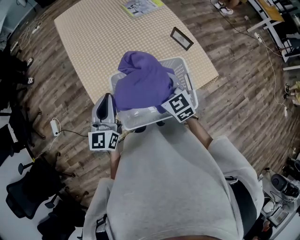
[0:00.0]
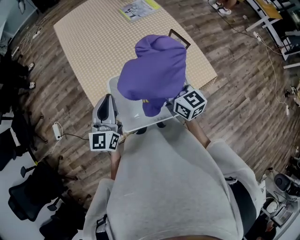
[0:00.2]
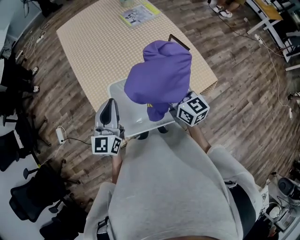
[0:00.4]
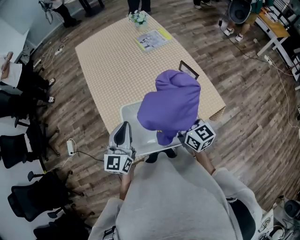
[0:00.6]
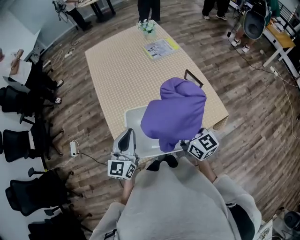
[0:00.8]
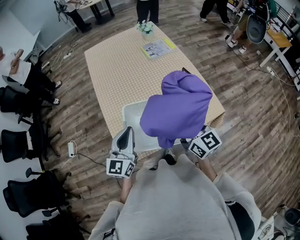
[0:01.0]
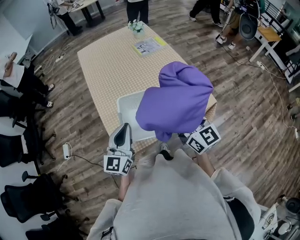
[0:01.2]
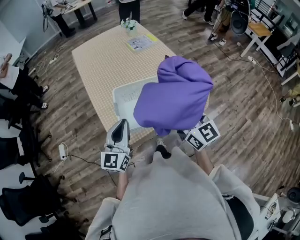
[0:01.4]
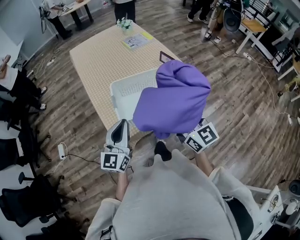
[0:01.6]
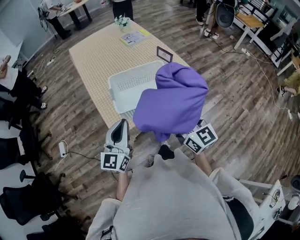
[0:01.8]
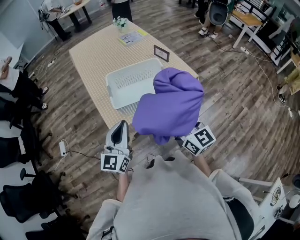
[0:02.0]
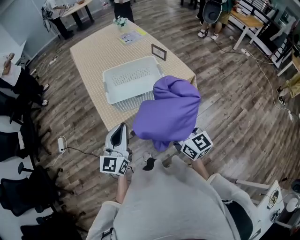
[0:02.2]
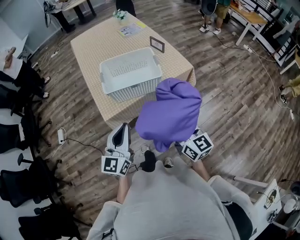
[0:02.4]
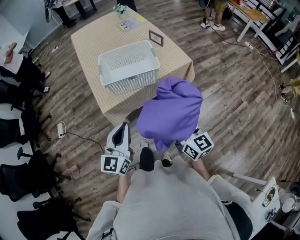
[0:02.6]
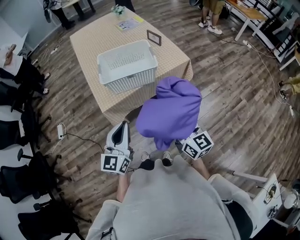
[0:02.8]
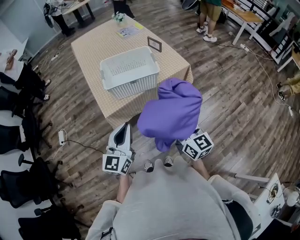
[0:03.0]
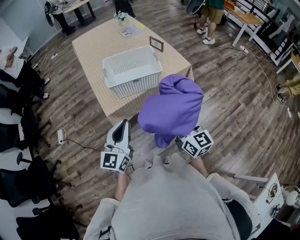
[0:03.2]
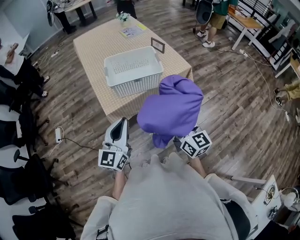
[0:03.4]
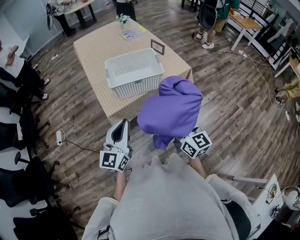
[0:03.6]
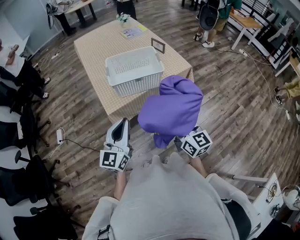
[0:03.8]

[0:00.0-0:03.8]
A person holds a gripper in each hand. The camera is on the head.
0:00.0 to 0:01.2: The left gripper is displaced backward by approximately 10 cm; the right gripper shifts approximately 20 cm upward, backward and to the right, and angles its fingers upward, by roughly 30 degrees.
0:01.2 to 0:02.6: The two grippers go some 35 cm backward.
0:02.6 to 0:03.8: The left gripper moves some 5 cm.

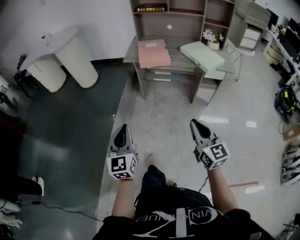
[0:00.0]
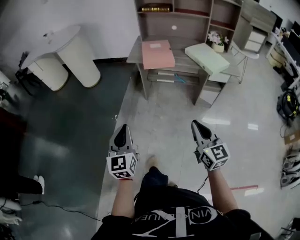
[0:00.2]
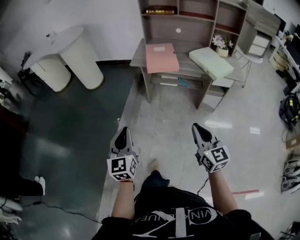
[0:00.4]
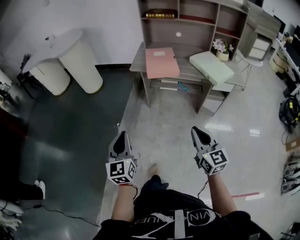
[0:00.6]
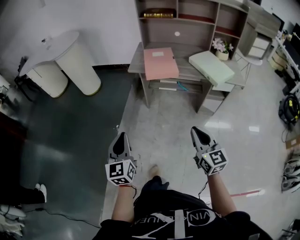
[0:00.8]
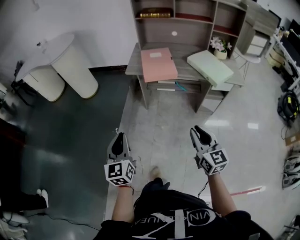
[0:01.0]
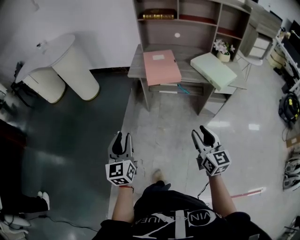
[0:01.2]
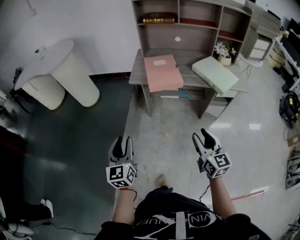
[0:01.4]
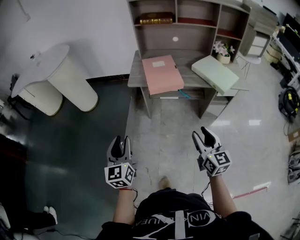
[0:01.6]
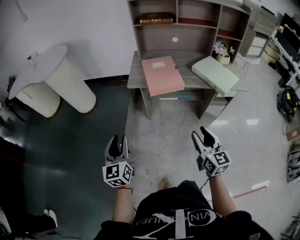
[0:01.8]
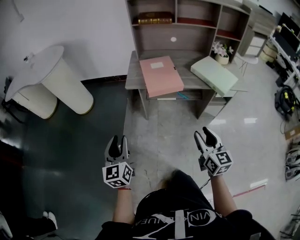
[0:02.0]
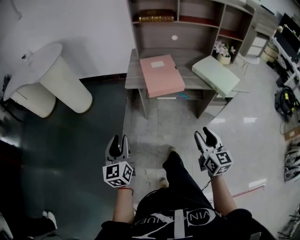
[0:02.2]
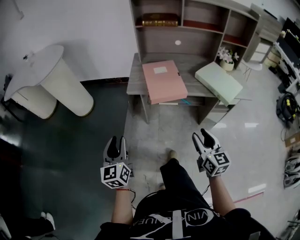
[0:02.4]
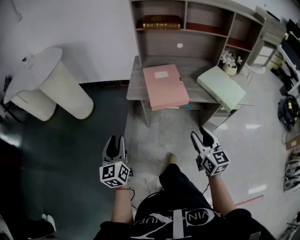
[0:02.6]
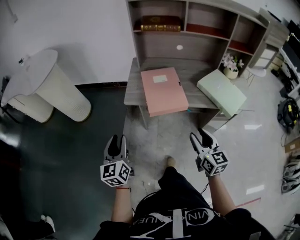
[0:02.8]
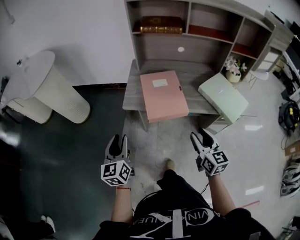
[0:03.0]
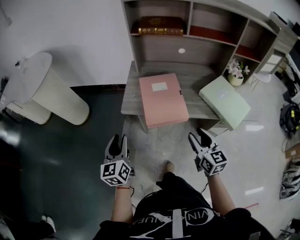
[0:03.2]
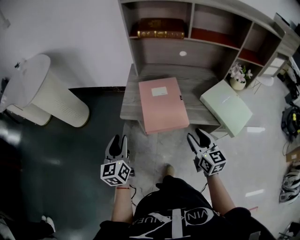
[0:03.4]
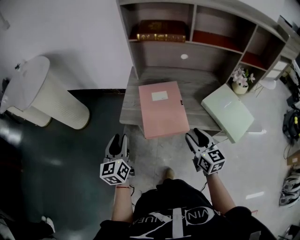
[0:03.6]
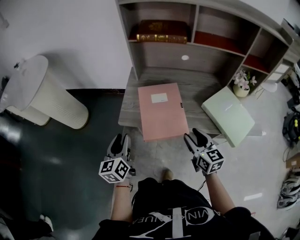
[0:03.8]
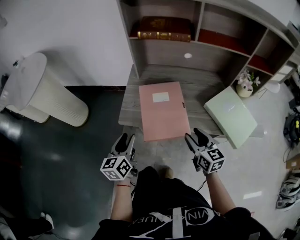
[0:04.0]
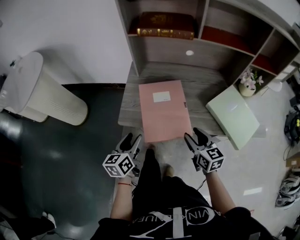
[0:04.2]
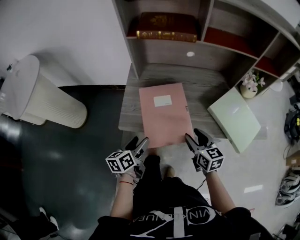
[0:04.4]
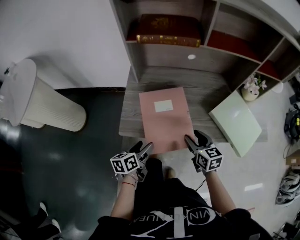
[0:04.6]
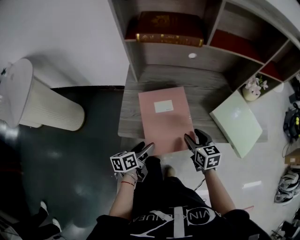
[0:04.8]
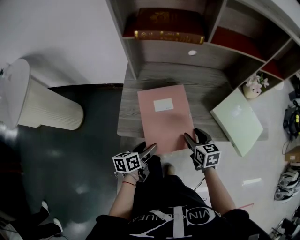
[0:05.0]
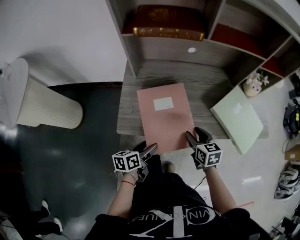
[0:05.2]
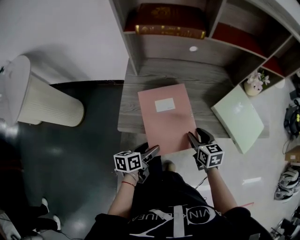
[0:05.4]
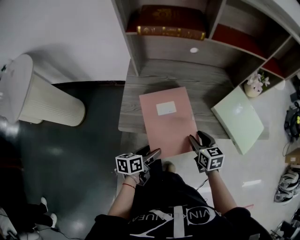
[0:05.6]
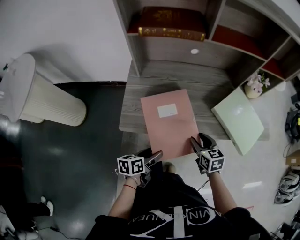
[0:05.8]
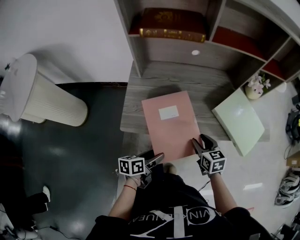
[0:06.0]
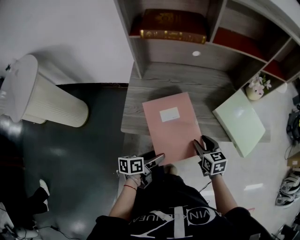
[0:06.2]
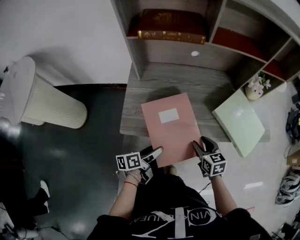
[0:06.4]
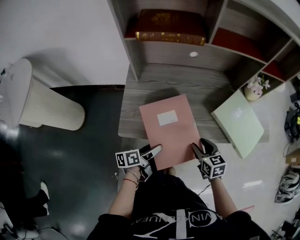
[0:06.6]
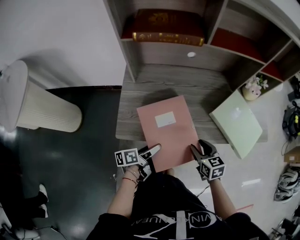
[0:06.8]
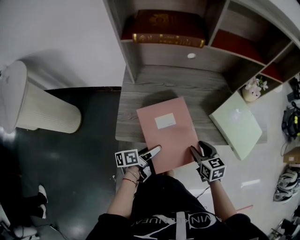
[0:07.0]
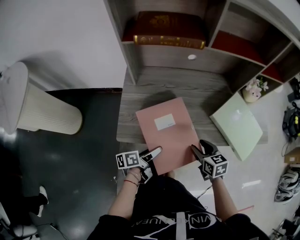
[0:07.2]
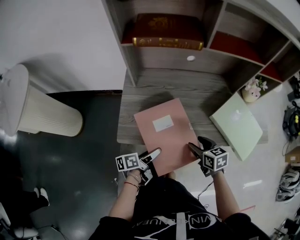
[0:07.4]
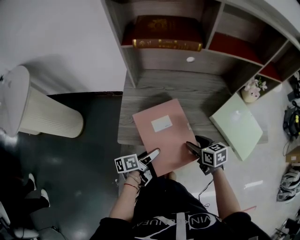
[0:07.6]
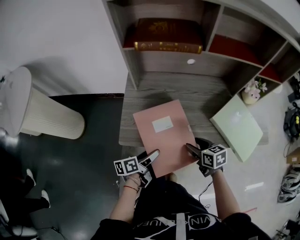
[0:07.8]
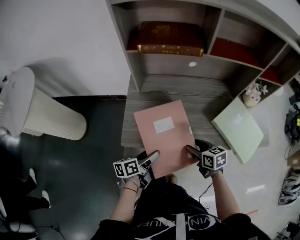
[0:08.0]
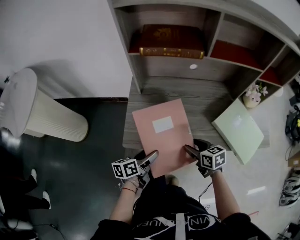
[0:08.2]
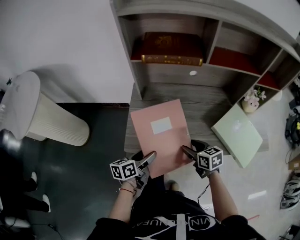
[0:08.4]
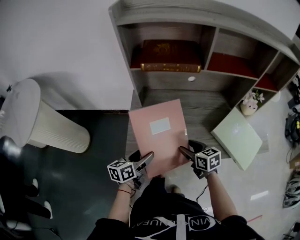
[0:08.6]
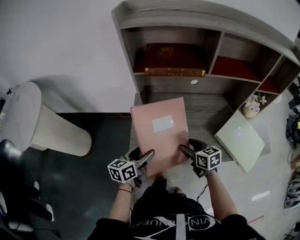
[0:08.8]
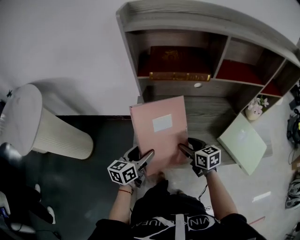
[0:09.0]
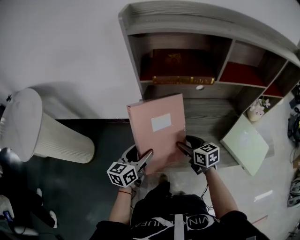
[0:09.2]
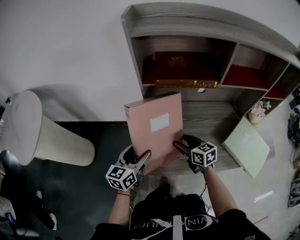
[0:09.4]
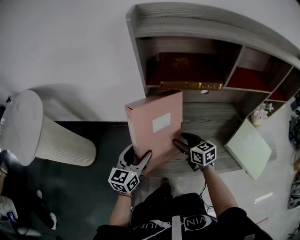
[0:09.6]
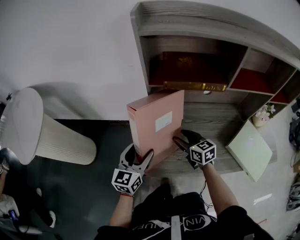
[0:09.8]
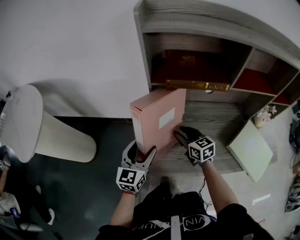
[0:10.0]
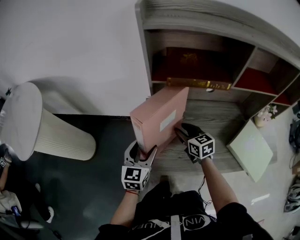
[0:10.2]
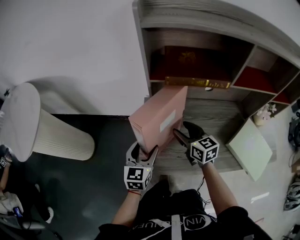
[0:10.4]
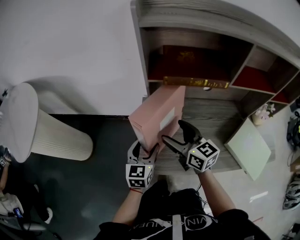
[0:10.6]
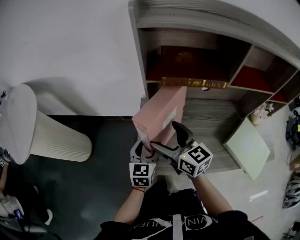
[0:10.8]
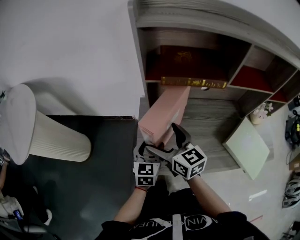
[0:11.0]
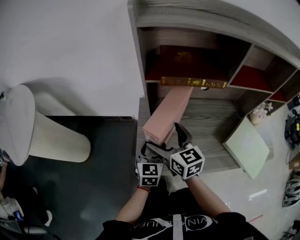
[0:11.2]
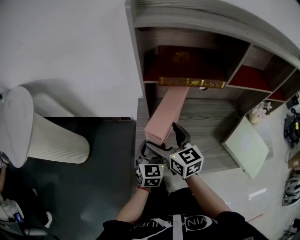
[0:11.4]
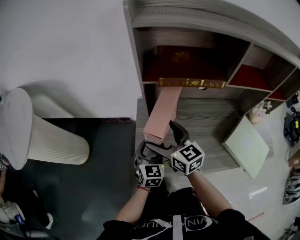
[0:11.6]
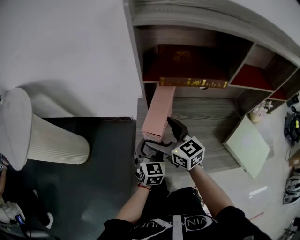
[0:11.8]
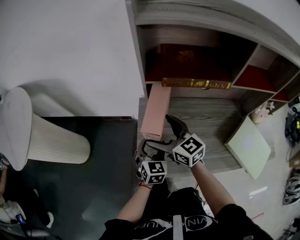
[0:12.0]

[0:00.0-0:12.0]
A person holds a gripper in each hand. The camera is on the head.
0:00.0 to 0:01.6: The grippers both shift forward by about 25 cm. The left gripper opens its fingers.
0:01.6 to 0:03.0: Both grippers move forward, some 25 cm.
0:03.0 to 0:04.4: The left gripper is displaced forward, downward and to the right by some 25 cm, swivels about 40 degrees, and opens. Meanwhile the right gripper moves forward and downward, about 20 cm.
0:04.4 to 0:06.0: The right gripper is displaced downward by approximately 5 cm. Meanwhile the left gripper moves to the right and downward, about 10 cm, and turns by approximately 20 degrees.
0:06.0 to 0:07.6: The left gripper goes roughly 5 cm forward.
0:07.6 to 0:09.0: The right gripper shifts roughly 15 cm forward, to the left and upward; the left gripper travels upward, forward and to the left by about 20 cm, and twists some 40 degrees clockwise, seen from behind.
0:09.0 to 0:10.4: The right gripper shifts roughly 15 cm forward, to the left and upward. The left gripper is displaced forward by roughly 5 cm, and turns by approximately 30 degrees.
0:10.4 to 0:12.0: The right gripper travels to the left and upward by approximately 10 cm, and opens up. The left gripper shifts by roughly 5 cm.

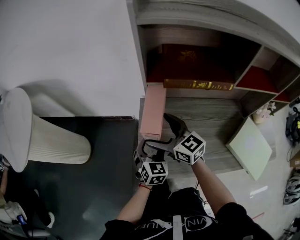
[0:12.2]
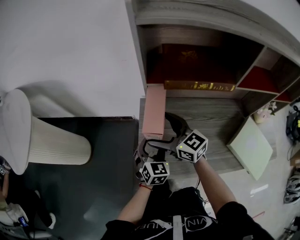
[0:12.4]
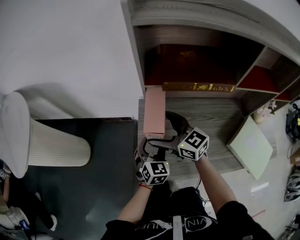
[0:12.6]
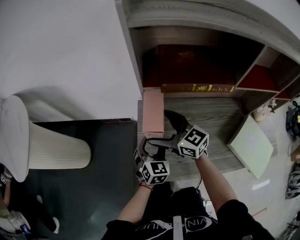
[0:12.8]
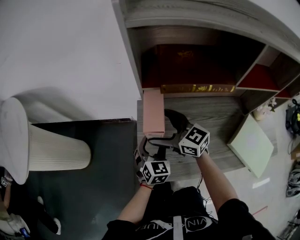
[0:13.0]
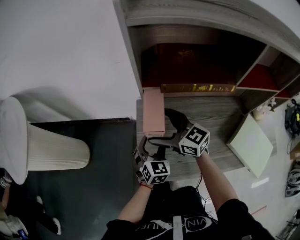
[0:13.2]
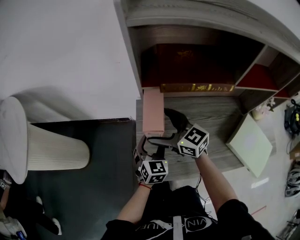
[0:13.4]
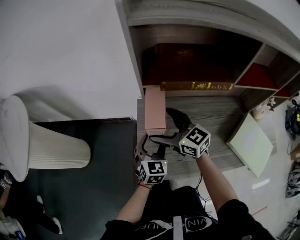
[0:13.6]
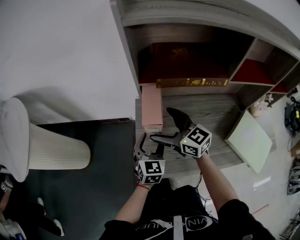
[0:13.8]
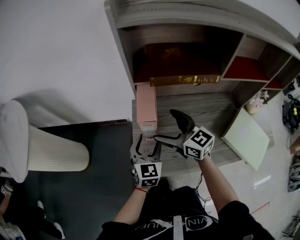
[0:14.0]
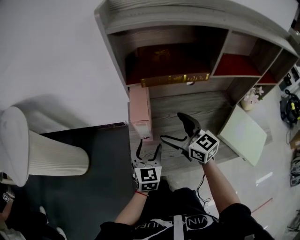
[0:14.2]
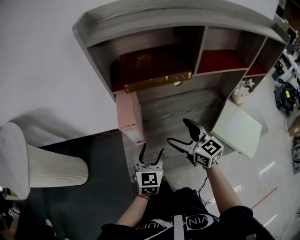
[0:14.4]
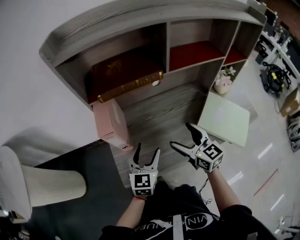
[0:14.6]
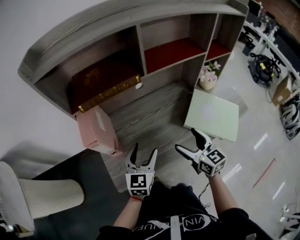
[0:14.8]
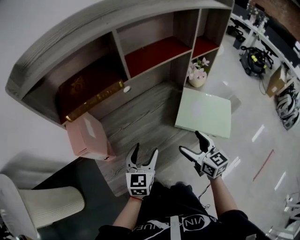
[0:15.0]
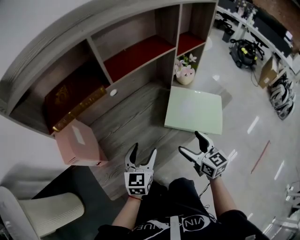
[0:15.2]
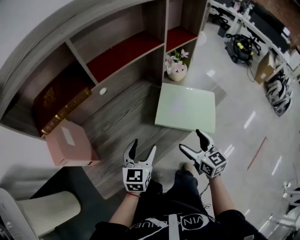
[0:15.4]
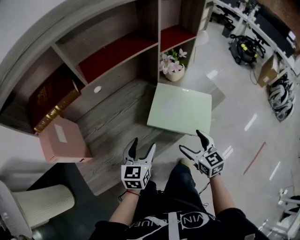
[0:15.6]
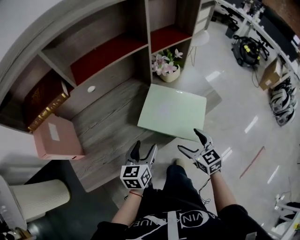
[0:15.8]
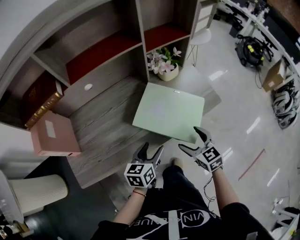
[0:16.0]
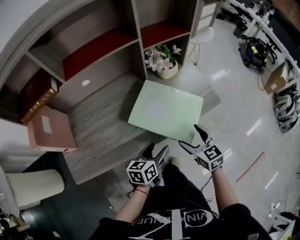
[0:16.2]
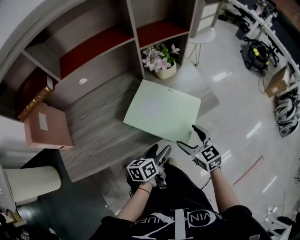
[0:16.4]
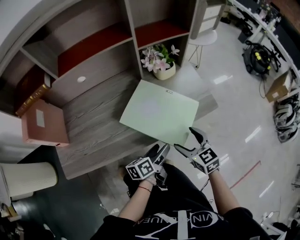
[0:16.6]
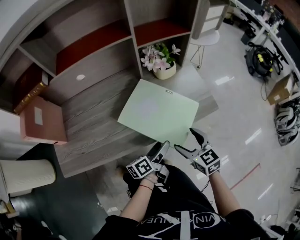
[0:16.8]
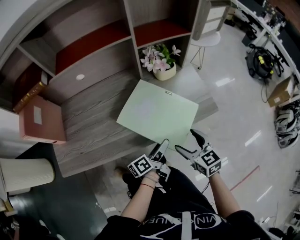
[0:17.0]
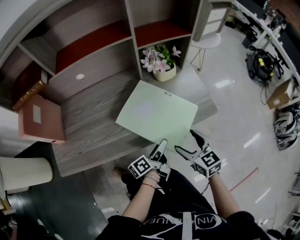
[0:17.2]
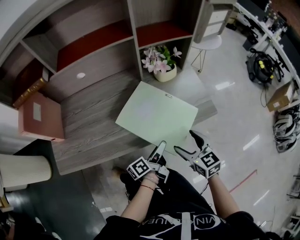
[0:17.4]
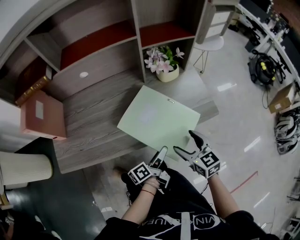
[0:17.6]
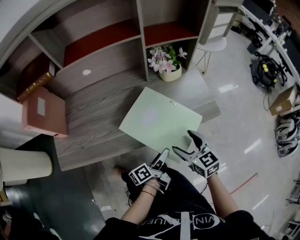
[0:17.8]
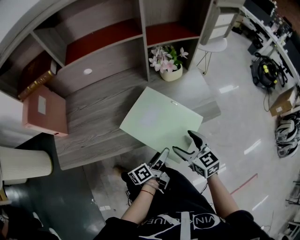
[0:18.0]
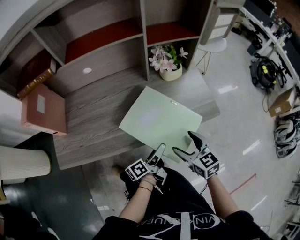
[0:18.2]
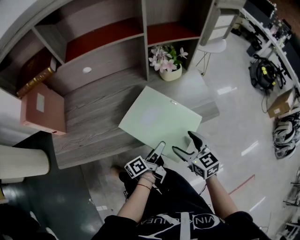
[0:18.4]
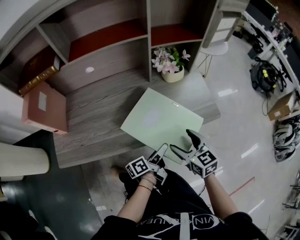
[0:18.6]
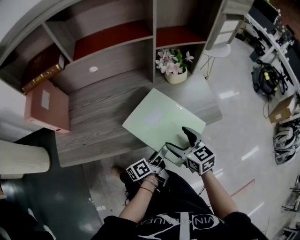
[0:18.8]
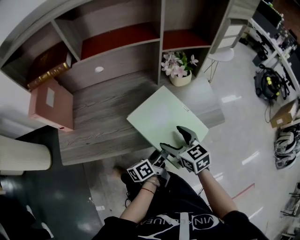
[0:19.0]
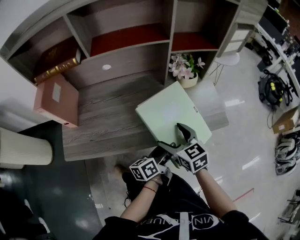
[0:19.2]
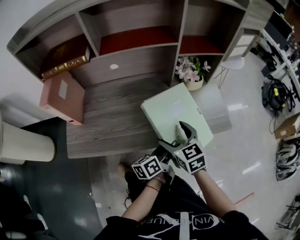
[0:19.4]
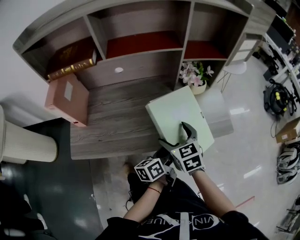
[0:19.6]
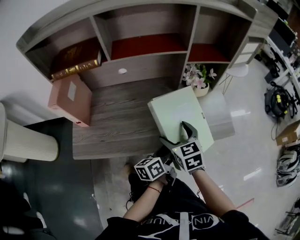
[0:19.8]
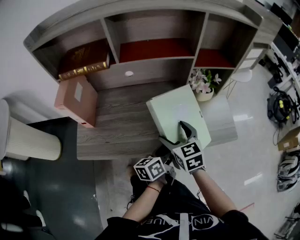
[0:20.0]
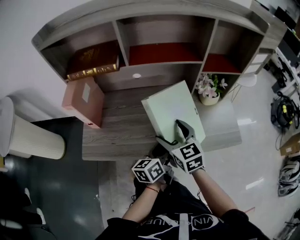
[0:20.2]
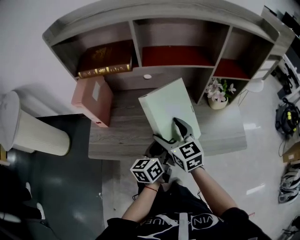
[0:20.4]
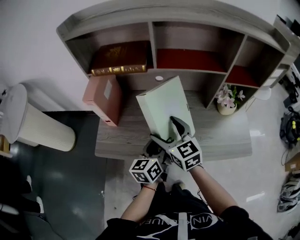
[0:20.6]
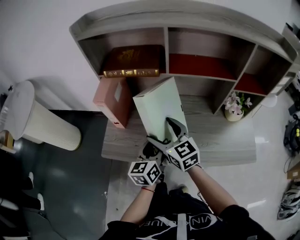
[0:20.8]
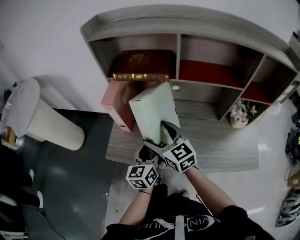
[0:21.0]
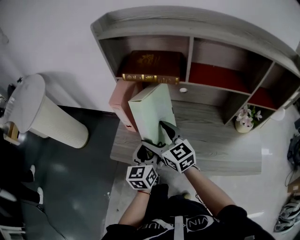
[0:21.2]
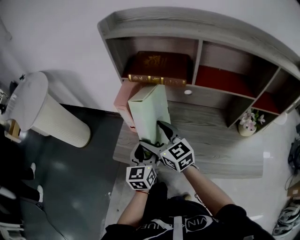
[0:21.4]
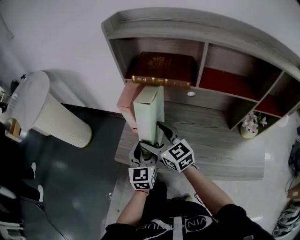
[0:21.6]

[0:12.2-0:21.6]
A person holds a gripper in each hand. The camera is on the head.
0:12.2 to 0:13.8: The grippers make only small movements.
0:13.8 to 0:15.4: The left gripper shifts by roughly 30 cm, and changes its angle by approximately 40 degrees; the right gripper changes place by some 50 cm, and swivels about 60 degrees.
0:15.4 to 0:17.0: The left gripper heads to the right and downward, covering approximately 30 cm, and rotates around the line of its fingers by some 70 degrees, counterclockwise from behind, while the right gripper heads to the right, covering some 20 cm, and swivels about 20 degrees.
0:17.0 to 0:18.4: The grippers stay close to where they were, moving slightly.
0:18.4 to 0:20.0: The left gripper travels upward and to the left by roughly 15 cm, and rotates approximately 30 degrees; the right gripper moves to the left, forward and upward, about 20 cm.
0:20.0 to 0:21.6: The right gripper moves about 35 cm, and rotates roughly 40 degrees; the left gripper ends up roughly 35 cm from where it was, and swivels about 60 degrees.
